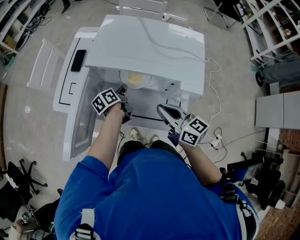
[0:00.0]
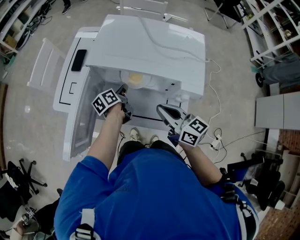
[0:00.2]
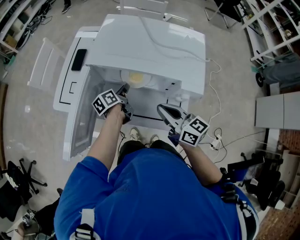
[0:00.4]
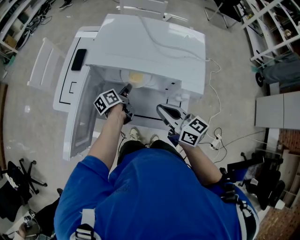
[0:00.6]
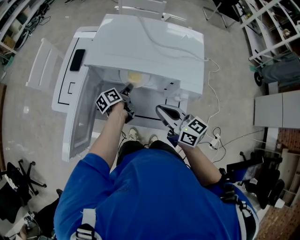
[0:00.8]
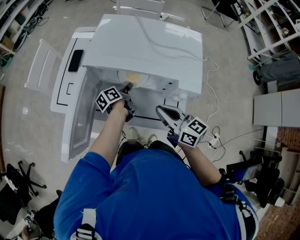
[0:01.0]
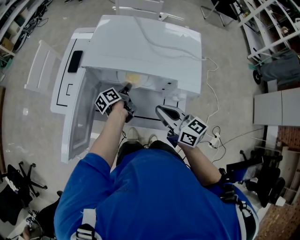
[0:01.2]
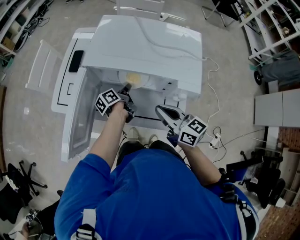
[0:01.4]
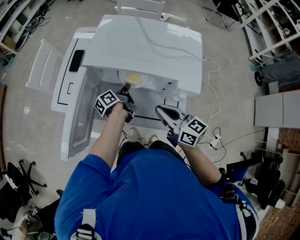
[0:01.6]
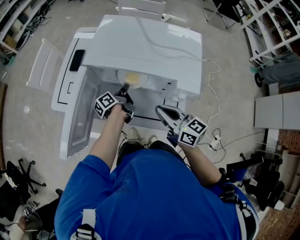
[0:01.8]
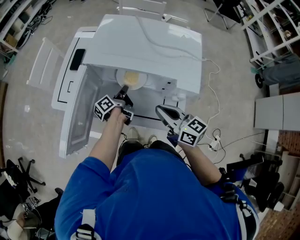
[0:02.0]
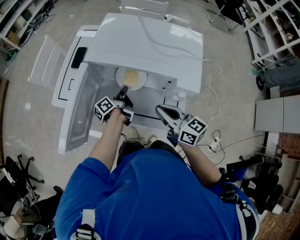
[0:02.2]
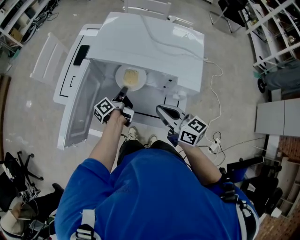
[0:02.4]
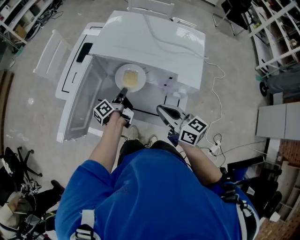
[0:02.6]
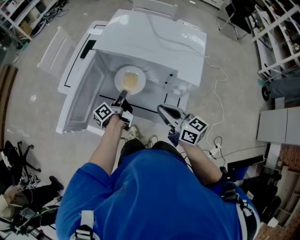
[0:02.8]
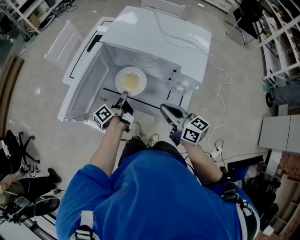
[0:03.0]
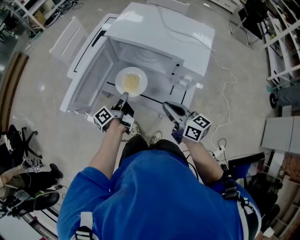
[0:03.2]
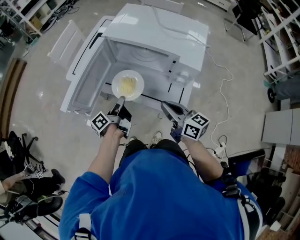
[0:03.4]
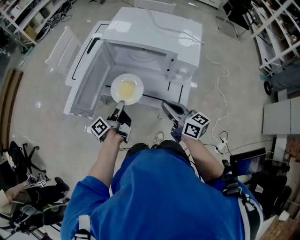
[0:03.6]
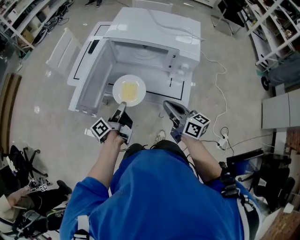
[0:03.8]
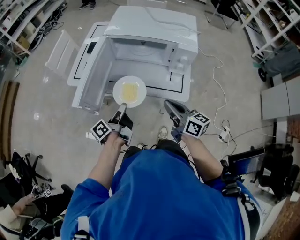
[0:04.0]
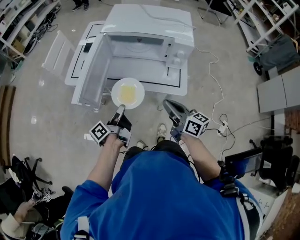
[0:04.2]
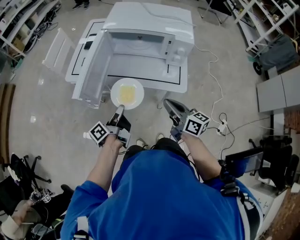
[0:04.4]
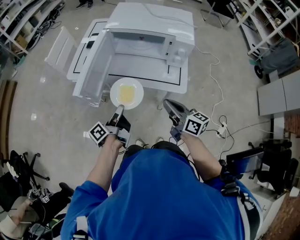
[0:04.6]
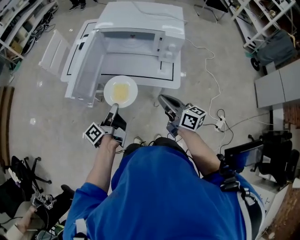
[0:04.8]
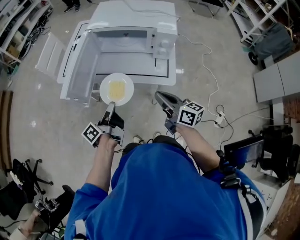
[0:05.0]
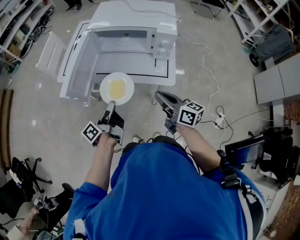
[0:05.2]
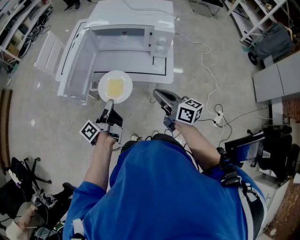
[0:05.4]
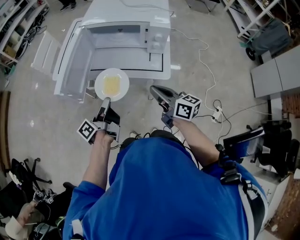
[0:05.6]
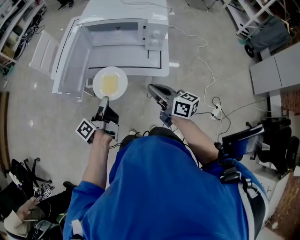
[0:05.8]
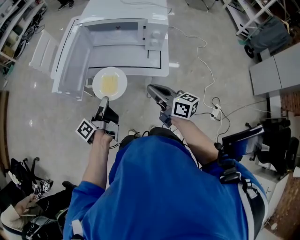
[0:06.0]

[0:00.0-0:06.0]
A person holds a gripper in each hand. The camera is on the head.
0:00.0 to 0:01.6: The left gripper opens, then closes again.
0:01.6 to 0:03.0: The right gripper heads backward, covering roughly 5 cm; the left gripper shifts roughly 15 cm backward and to the left.
0:03.0 to 0:04.4: The grippers both shift backward and to the left by roughly 15 cm.
0:04.4 to 0:06.0: The grippers make only small movements.

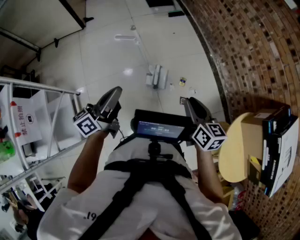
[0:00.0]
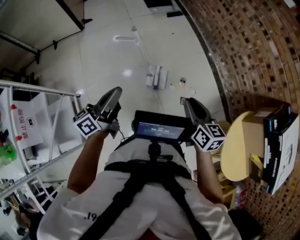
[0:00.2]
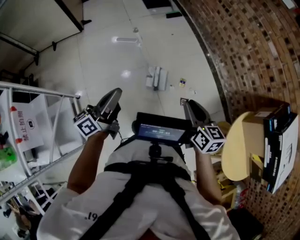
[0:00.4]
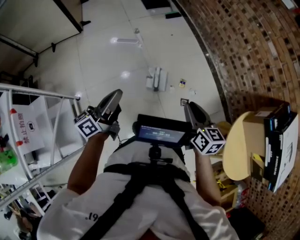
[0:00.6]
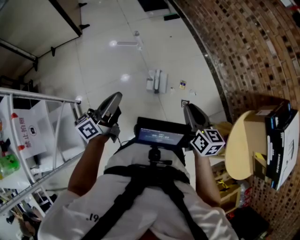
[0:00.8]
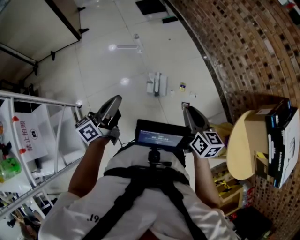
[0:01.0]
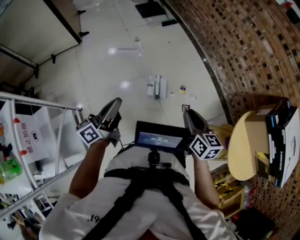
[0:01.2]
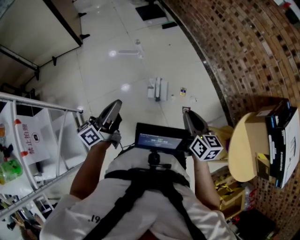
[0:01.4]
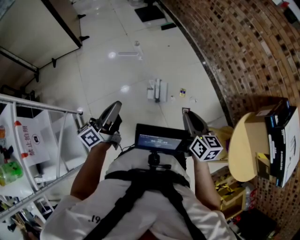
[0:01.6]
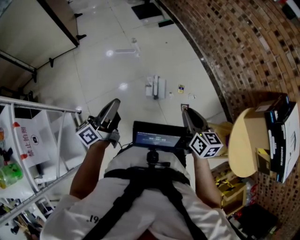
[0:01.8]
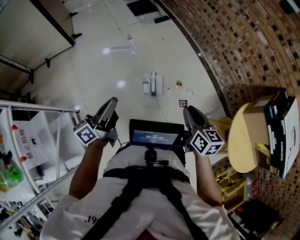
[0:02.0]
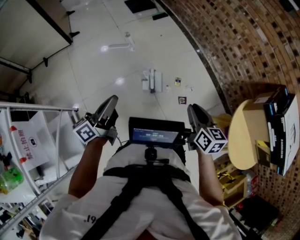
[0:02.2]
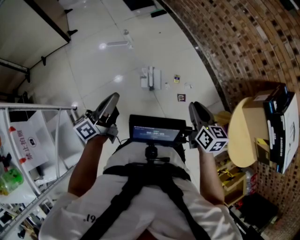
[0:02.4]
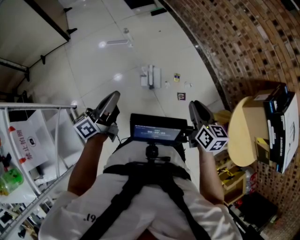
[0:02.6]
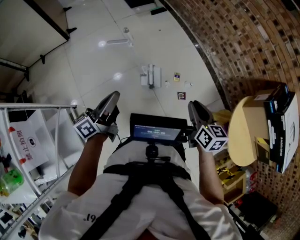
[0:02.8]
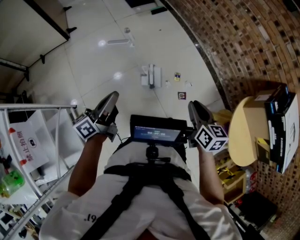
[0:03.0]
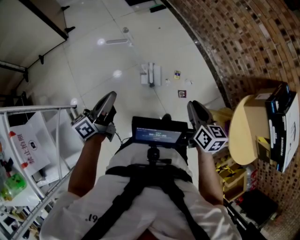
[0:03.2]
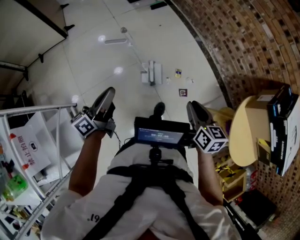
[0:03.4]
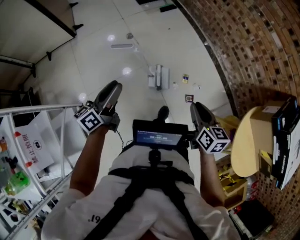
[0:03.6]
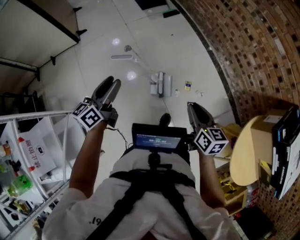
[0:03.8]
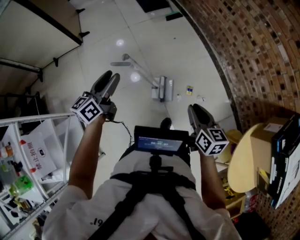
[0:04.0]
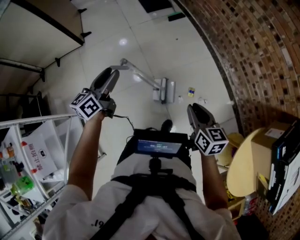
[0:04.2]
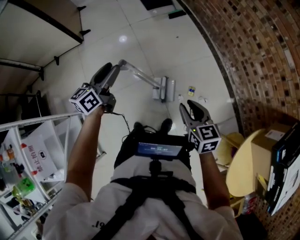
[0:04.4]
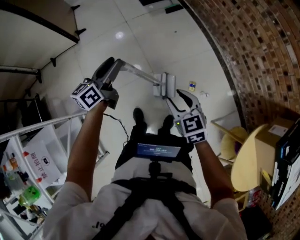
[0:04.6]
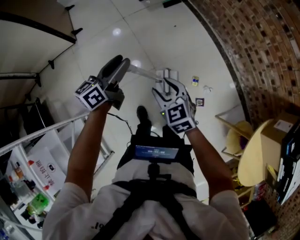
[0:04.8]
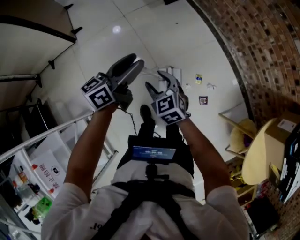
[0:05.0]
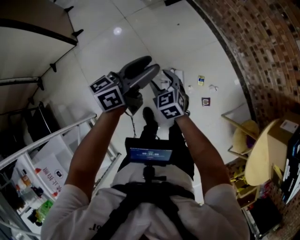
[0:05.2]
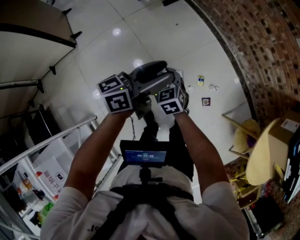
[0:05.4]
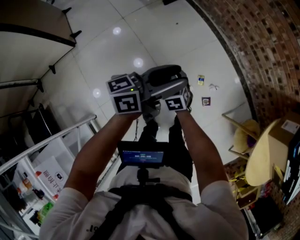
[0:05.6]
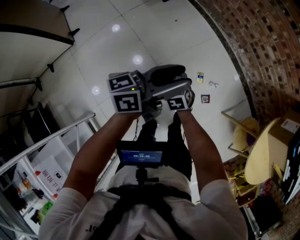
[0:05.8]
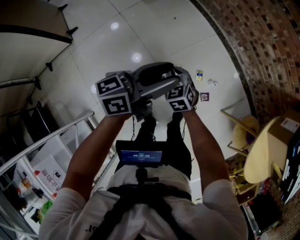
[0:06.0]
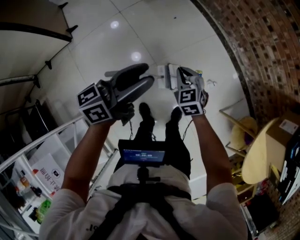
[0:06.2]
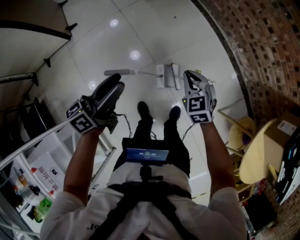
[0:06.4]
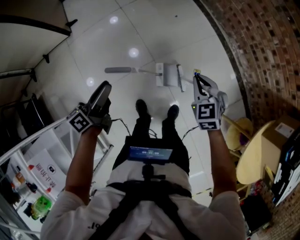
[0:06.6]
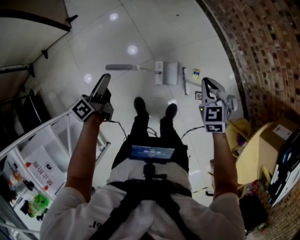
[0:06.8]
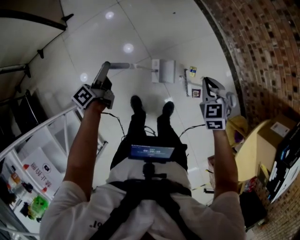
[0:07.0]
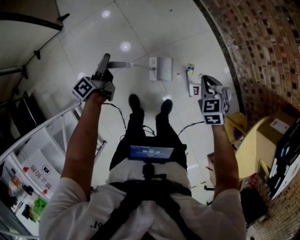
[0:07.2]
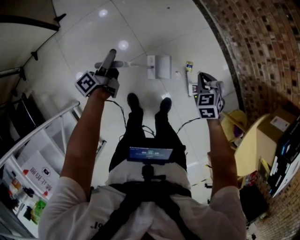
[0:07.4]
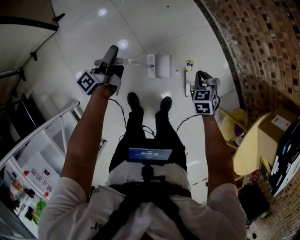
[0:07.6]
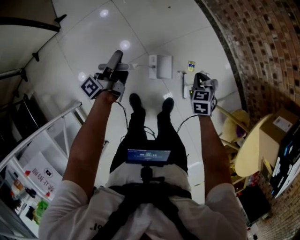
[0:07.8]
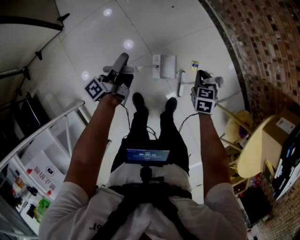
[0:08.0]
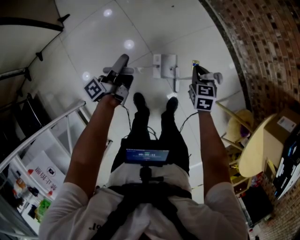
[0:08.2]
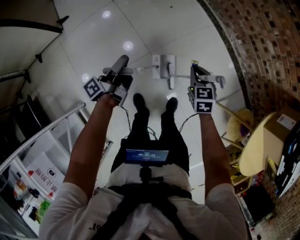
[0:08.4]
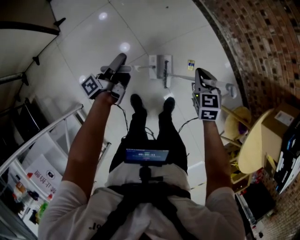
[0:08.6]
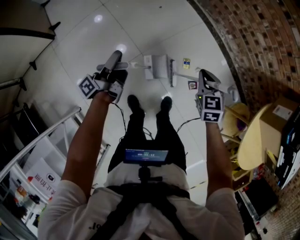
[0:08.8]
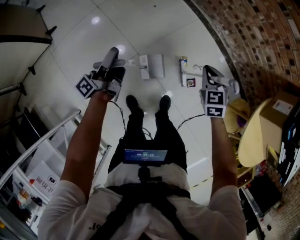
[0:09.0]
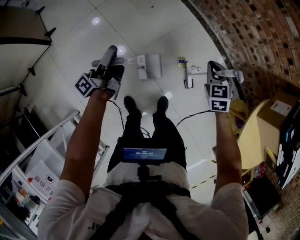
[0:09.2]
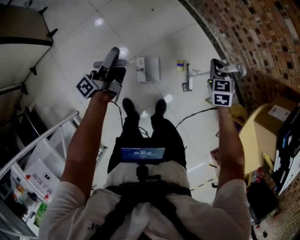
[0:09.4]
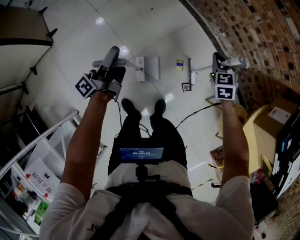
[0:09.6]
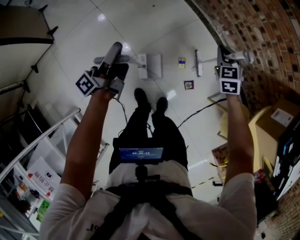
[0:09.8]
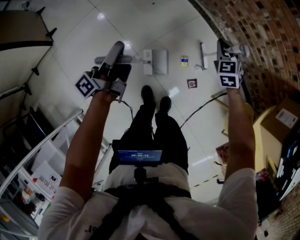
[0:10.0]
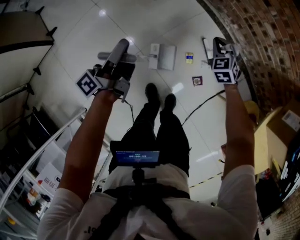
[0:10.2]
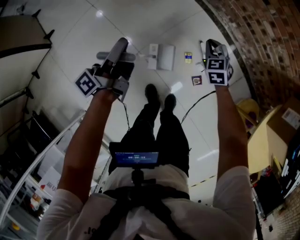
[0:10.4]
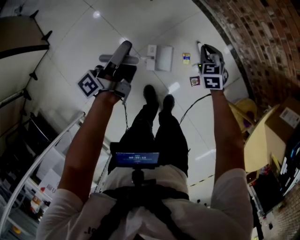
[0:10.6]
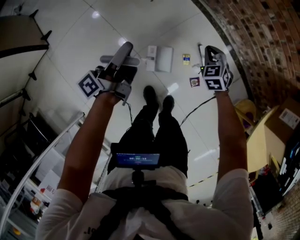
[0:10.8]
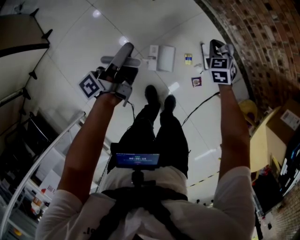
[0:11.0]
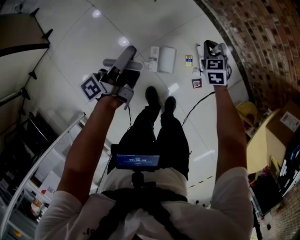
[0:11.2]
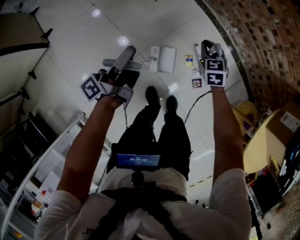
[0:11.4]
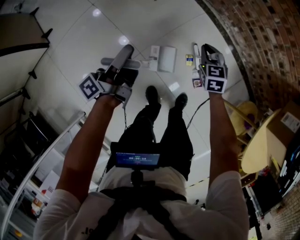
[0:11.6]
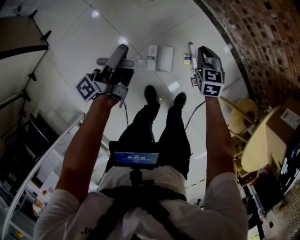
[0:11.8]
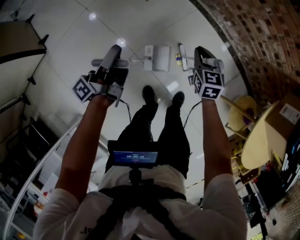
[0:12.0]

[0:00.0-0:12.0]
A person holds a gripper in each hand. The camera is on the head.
0:00.0 to 0:01.6: The left gripper shifts about 5 cm to the left, while the right gripper shifts by roughly 5 cm.
0:01.6 to 0:03.0: The grippers make only small movements.
0:03.0 to 0:04.4: The two grippers go about 20 cm forward. The left gripper swivels roughly 30 degrees, and opens its fingers.
0:04.4 to 0:06.0: The right gripper shifts by roughly 25 cm, rotates approximately 30 degrees, and closes its fingers; the left gripper ends up some 20 cm from where it was, and swivels roughly 50 degrees.
0:06.0 to 0:07.6: The right gripper heads to the right, covering some 15 cm. Meanwhile the left gripper moves to the left and downward, about 25 cm, swivels approximately 50 degrees, and closes its fingers.
0:07.6 to 0:09.0: The left gripper travels to the right by roughly 5 cm. The right gripper goes about 10 cm upward and to the right.
0:09.0 to 0:10.4: The right gripper heads forward and downward, covering some 20 cm. Meanwhile the left gripper heads forward and to the right, covering roughly 15 cm.
0:10.4 to 0:12.0: The right gripper shifts by roughly 5 cm, and swivels about 20 degrees.

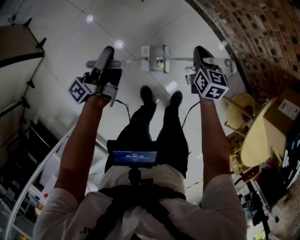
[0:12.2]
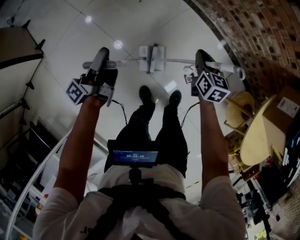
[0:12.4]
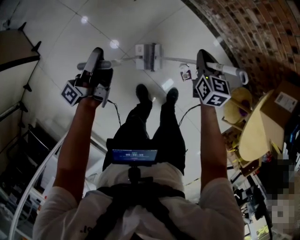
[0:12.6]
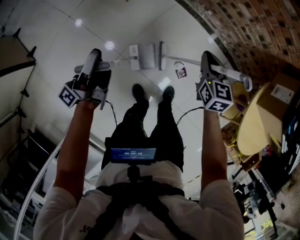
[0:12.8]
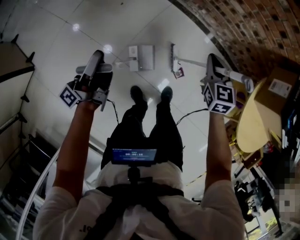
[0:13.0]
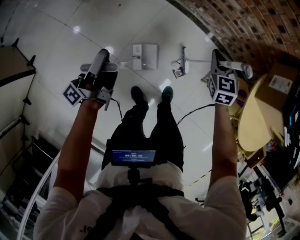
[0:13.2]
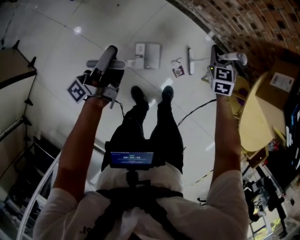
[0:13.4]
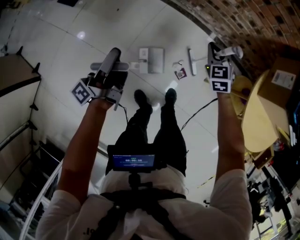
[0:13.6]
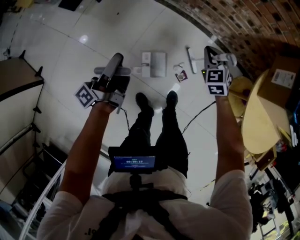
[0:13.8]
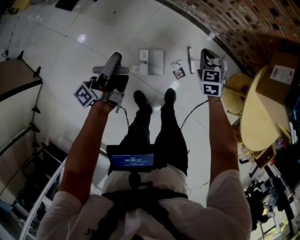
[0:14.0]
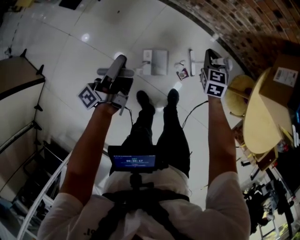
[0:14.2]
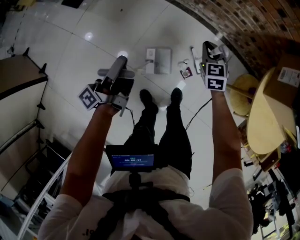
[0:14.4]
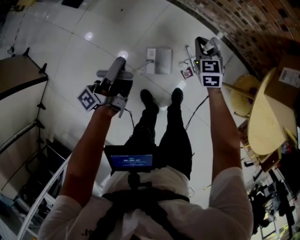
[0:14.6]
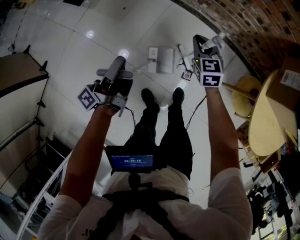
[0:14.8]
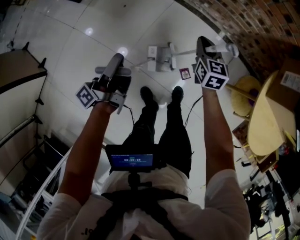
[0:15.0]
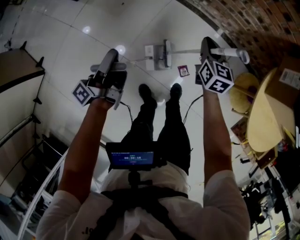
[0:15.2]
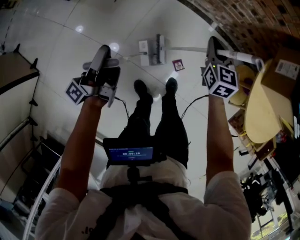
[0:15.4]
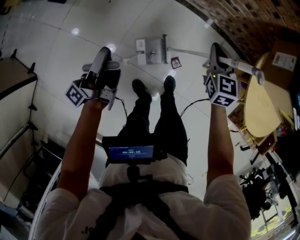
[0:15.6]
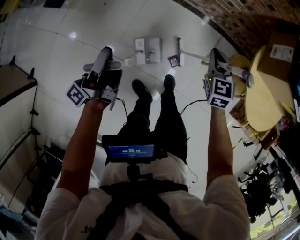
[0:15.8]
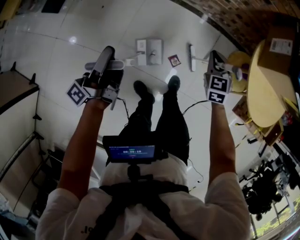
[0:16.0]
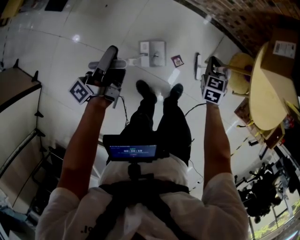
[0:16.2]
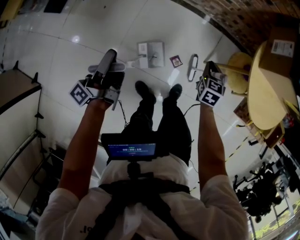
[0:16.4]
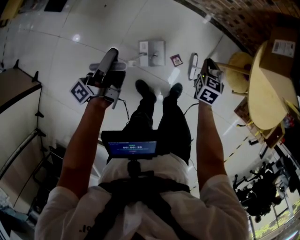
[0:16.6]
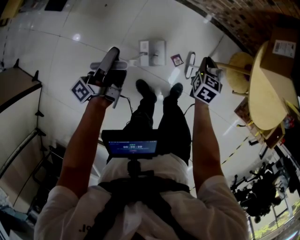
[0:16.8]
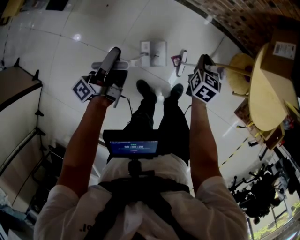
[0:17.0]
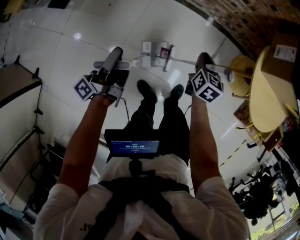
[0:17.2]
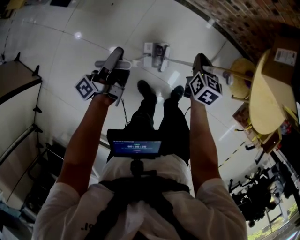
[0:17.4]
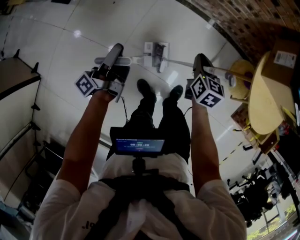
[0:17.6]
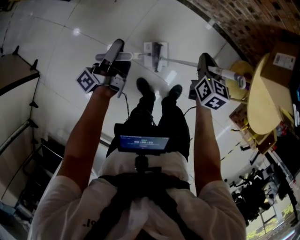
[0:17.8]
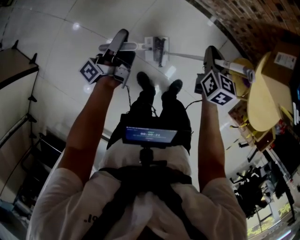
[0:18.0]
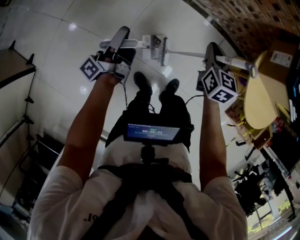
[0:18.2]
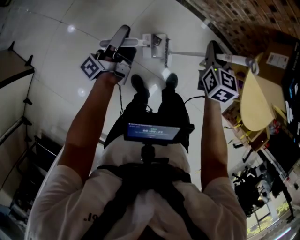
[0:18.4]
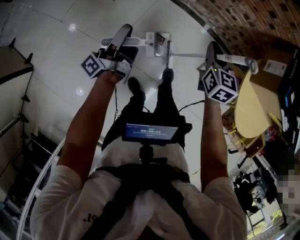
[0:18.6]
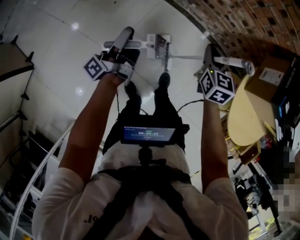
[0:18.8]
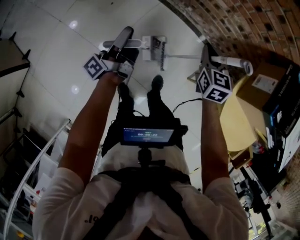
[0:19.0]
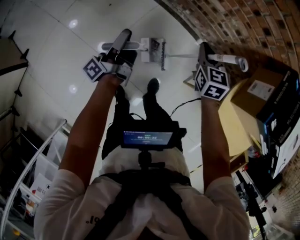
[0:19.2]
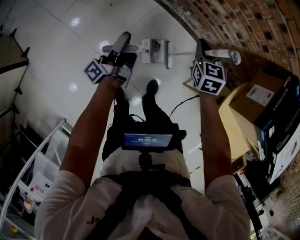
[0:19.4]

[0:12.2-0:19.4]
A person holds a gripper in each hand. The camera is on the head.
0:12.2 to 0:13.6: Both grippers move to the right, approximately 15 cm. The right gripper changes its angle by roughly 30 degrees.
0:13.6 to 0:15.0: The right gripper heads to the left, covering approximately 5 cm, and swivels approximately 30 degrees.
0:15.0 to 0:16.6: The right gripper travels to the right and backward by about 20 cm, and swivels roughly 30 degrees.
0:16.6 to 0:18.0: The right gripper is displaced upward and to the left by about 15 cm.
0:18.0 to 0:19.4: The right gripper shifts roughly 20 cm forward, and turns by roughly 30 degrees. Meanwhile the left gripper moves forward and to the right, about 15 cm.
